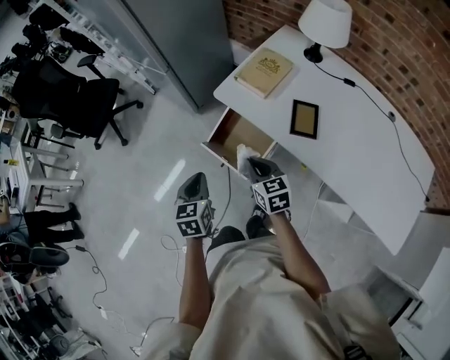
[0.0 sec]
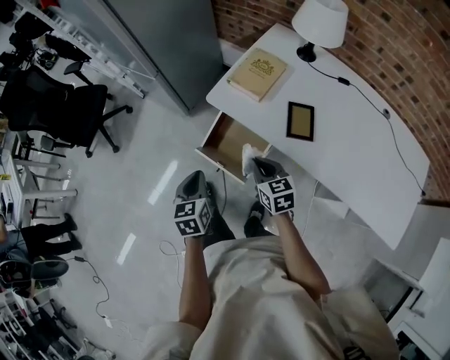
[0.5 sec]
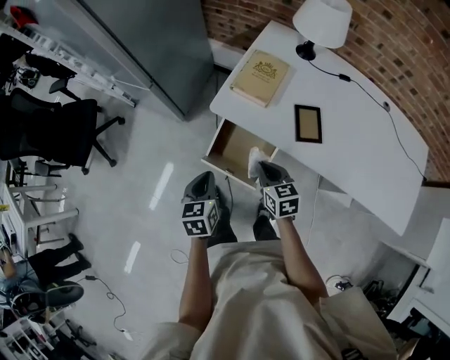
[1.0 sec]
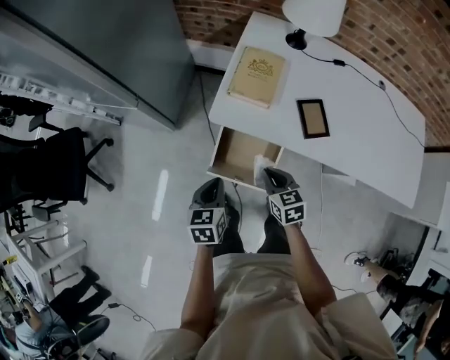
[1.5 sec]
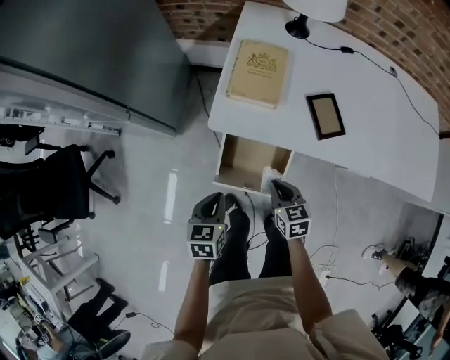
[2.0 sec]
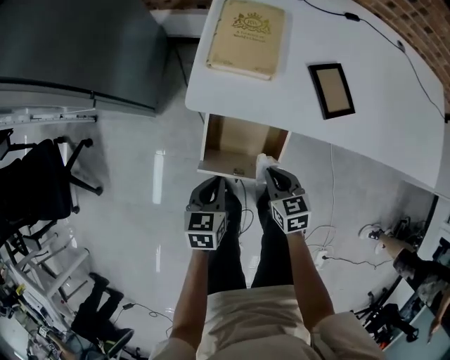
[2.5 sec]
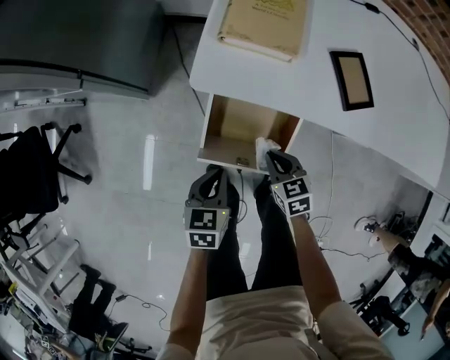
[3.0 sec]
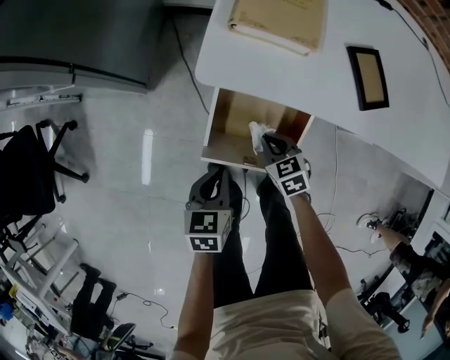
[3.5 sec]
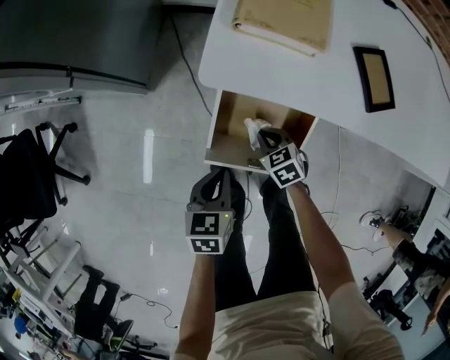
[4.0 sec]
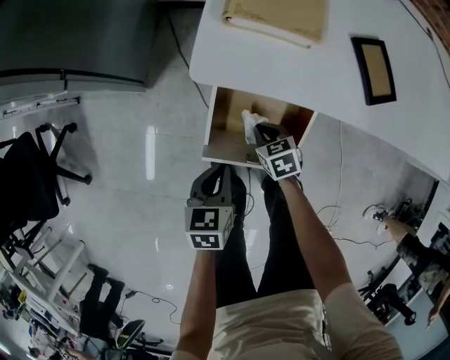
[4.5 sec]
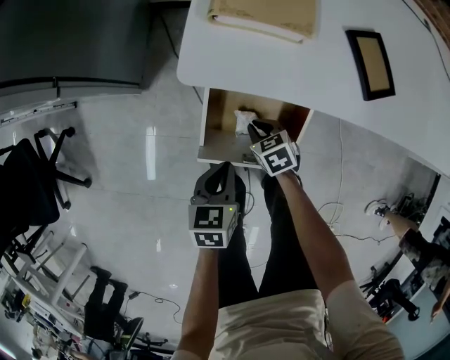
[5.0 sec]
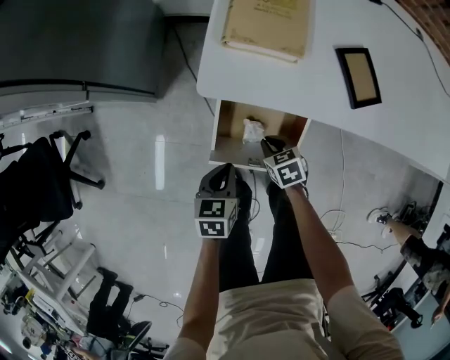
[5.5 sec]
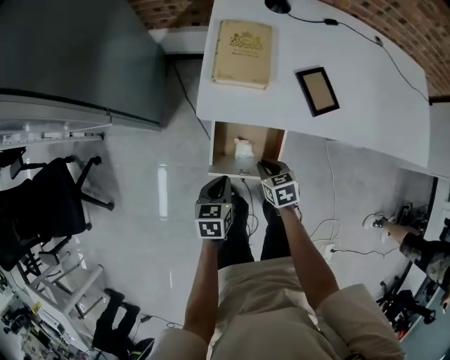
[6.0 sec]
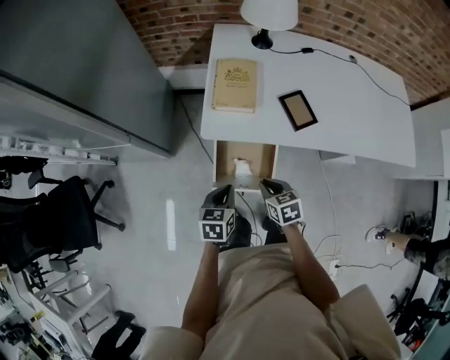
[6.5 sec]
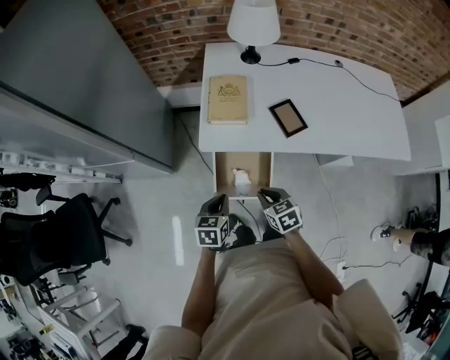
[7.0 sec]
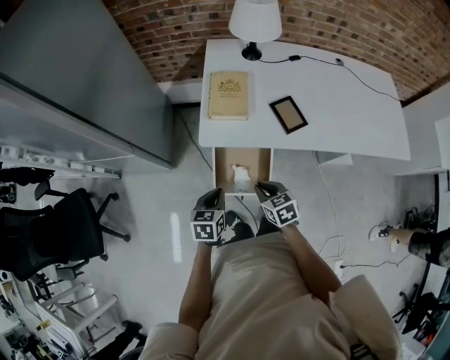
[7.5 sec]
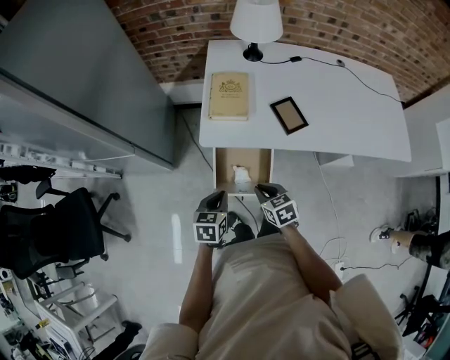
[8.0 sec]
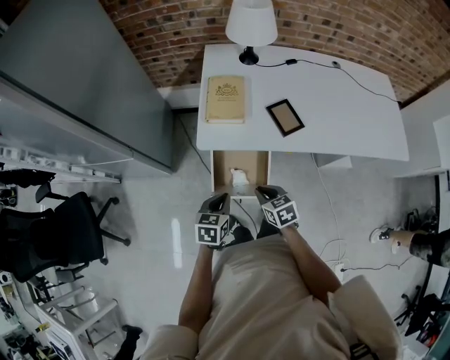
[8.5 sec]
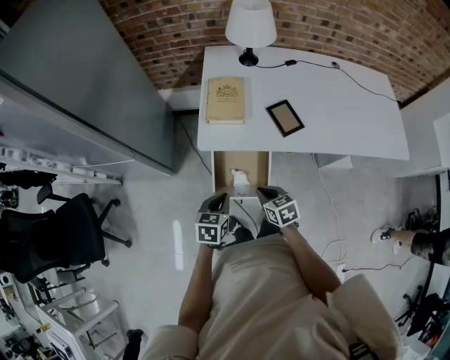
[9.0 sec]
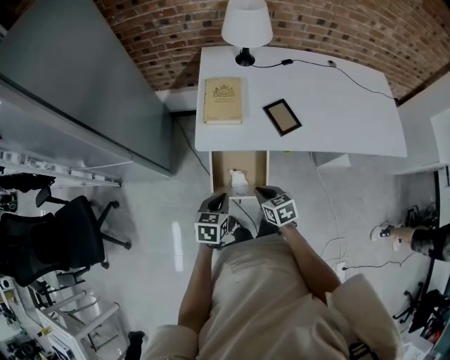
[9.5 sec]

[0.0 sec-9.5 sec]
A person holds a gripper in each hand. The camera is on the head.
0.0 sec to 2.0 sec: The left gripper moves approximately 20 cm, and changes its angle by some 40 degrees. Meanwhile the right gripper is displaced downward by roughly 15 cm, and changes its angle by some 30 degrees.
2.0 sec to 4.0 sec: The left gripper is displaced downward by some 15 cm. Meanwhile the right gripper is displaced downward by about 20 cm, and changes its angle by about 30 degrees.
4.0 sec to 5.5 sec: There are only small adjustments of the grippers.
5.5 sec to 7.5 sec: Both grippers travel together upward, about 25 cm.
7.5 sec to 9.5 sec: The grippers stay close to where they were, moving slightly.

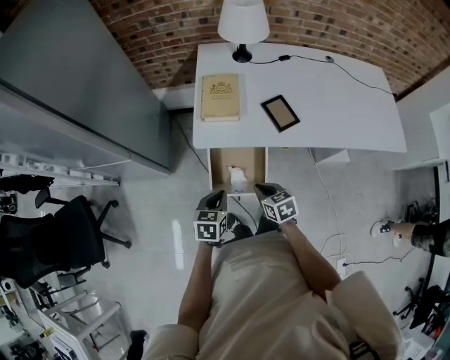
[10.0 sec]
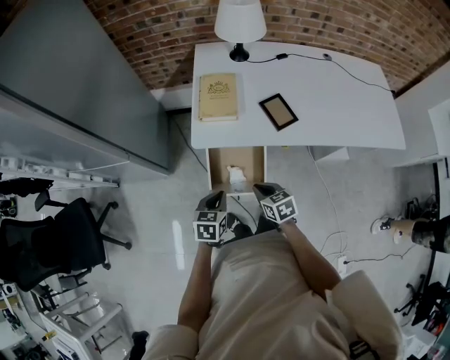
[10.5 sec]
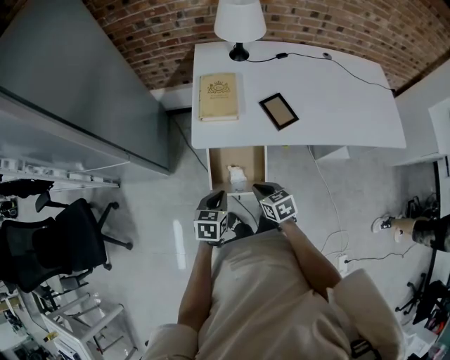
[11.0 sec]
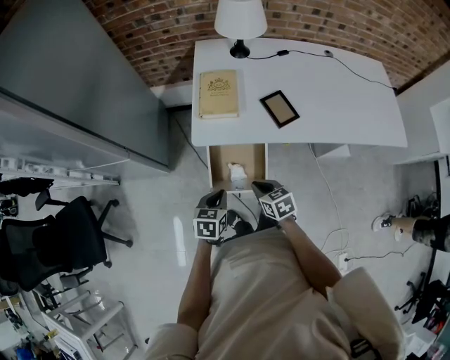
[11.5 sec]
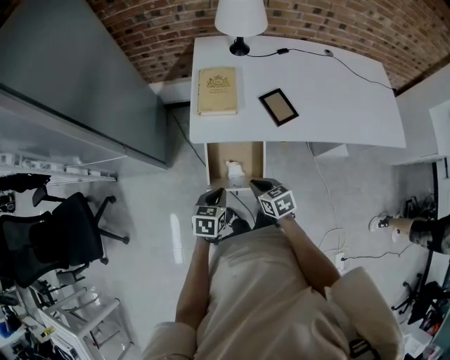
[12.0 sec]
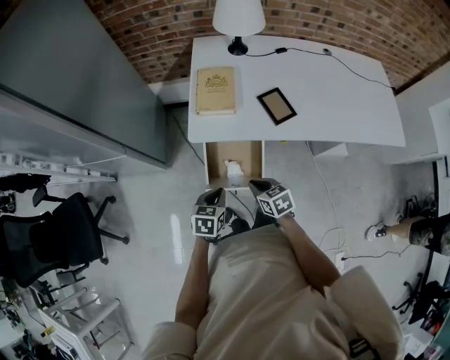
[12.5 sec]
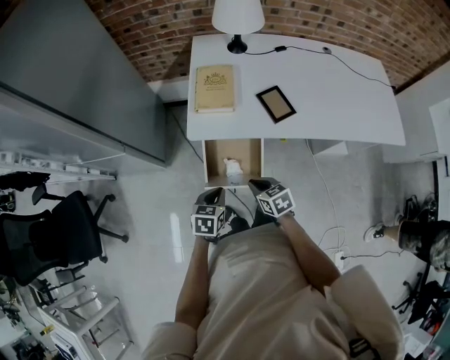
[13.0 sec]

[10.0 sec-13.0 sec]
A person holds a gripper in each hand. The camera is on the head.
10.0 sec to 11.5 sec: Neither gripper changes place.
11.5 sec to 13.0 sec: The grippers move only a little.

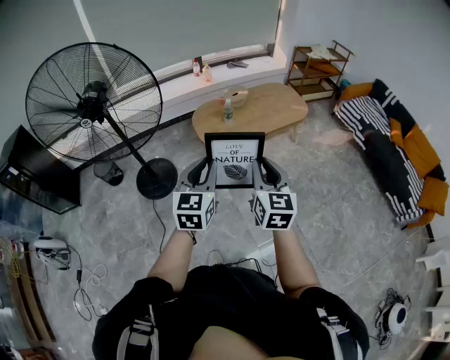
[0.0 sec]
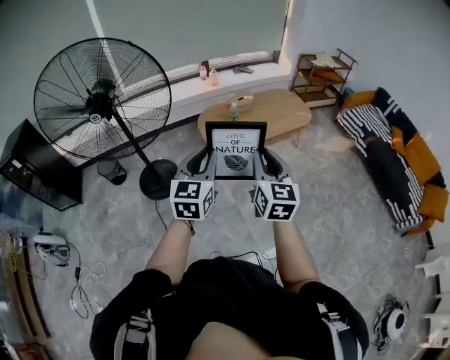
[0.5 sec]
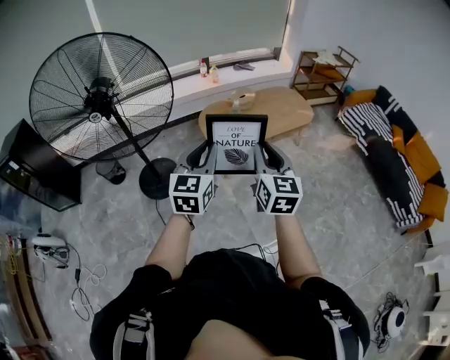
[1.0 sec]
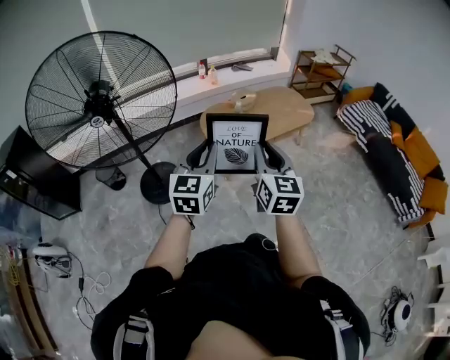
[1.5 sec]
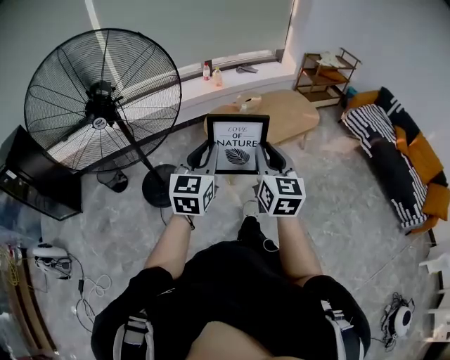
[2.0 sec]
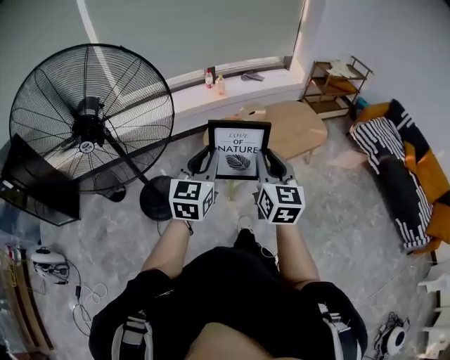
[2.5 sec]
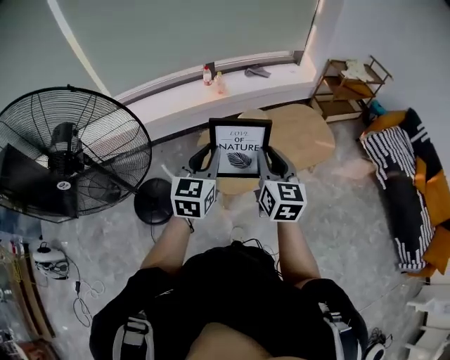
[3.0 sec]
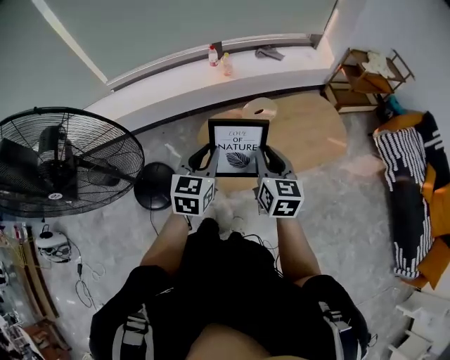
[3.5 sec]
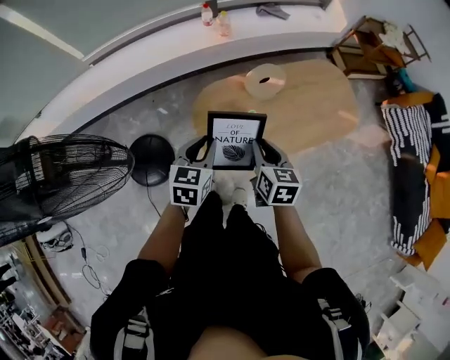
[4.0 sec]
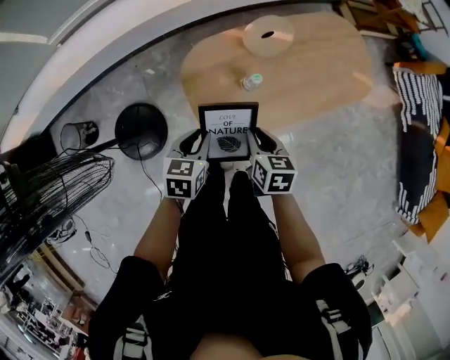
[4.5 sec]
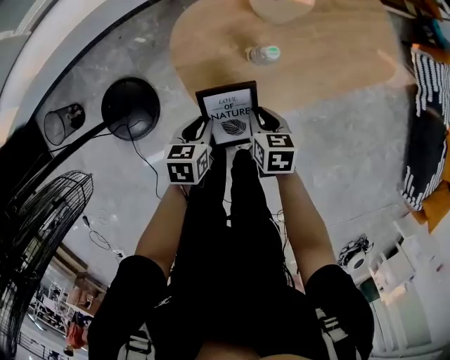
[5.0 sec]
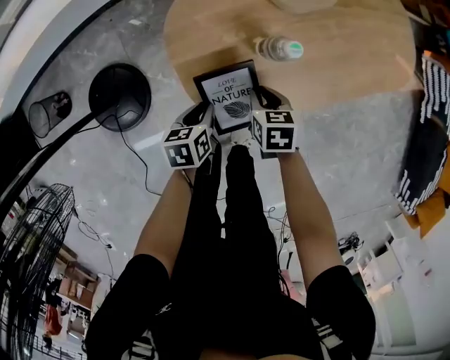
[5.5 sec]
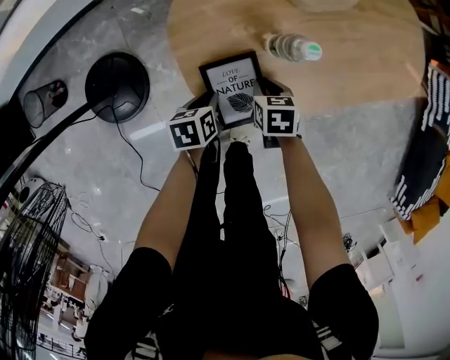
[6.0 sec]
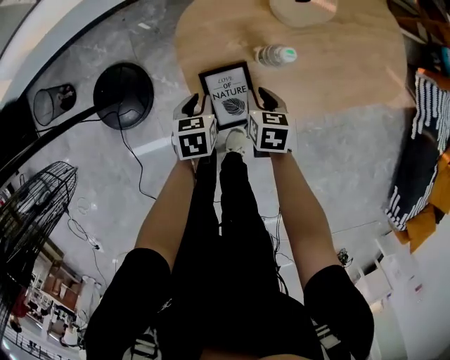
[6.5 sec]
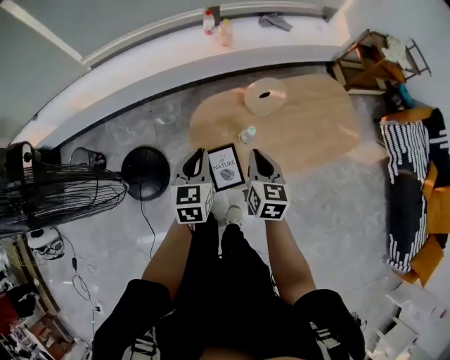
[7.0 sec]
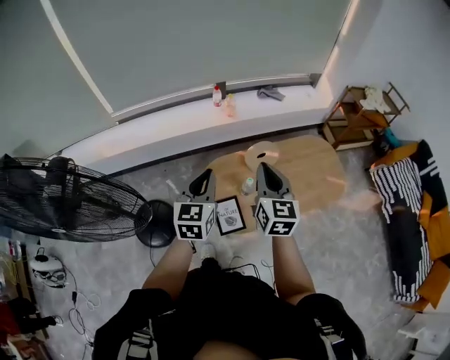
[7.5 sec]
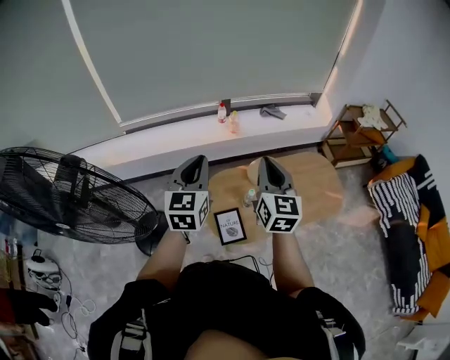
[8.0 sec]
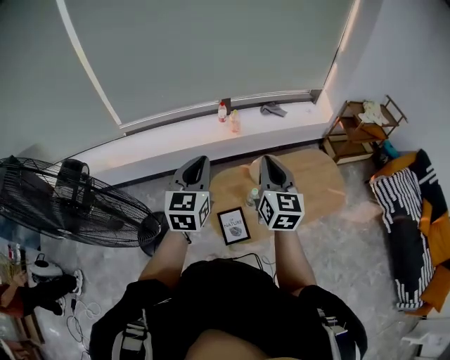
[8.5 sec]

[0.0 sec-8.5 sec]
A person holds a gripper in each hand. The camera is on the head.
0.0 sec to 2.0 sec: The grippers both shift to the left and forward by roughly 15 cm.
2.0 sec to 4.0 sec: The two grippers travel together, forward, roughly 70 cm. The right gripper goes approximately 25 cm downward, and swivels about 40 degrees; the left gripper points its fingers about 30 degrees further downward.
4.0 sec to 6.5 sec: Both grippers travel together downward, roughly 40 cm. The left gripper turns by roughly 30 degrees. Meanwhile the right gripper turns by about 20 degrees.
6.5 sec to 8.5 sec: The grippers both shift upward by approximately 70 cm. The right gripper tilts its fingers about 50 degrees upward, and closes up, while the left gripper angles its fingers upward, by approximately 50 degrees.

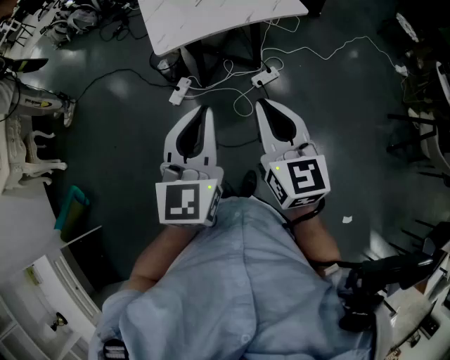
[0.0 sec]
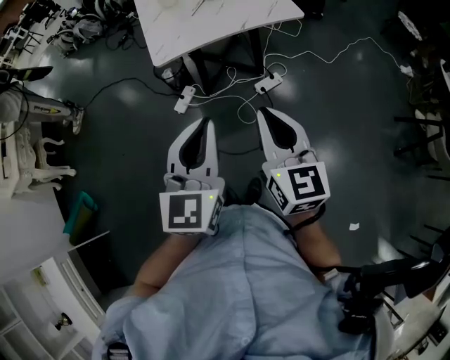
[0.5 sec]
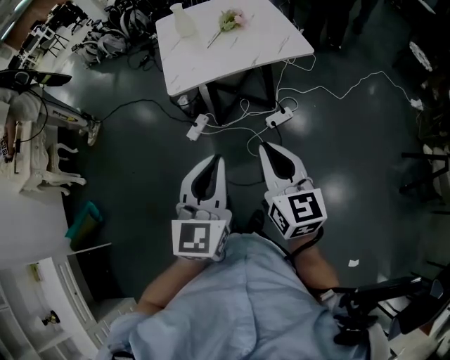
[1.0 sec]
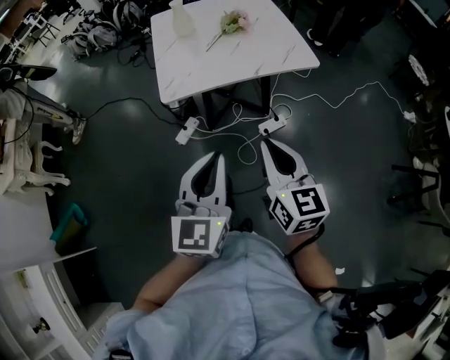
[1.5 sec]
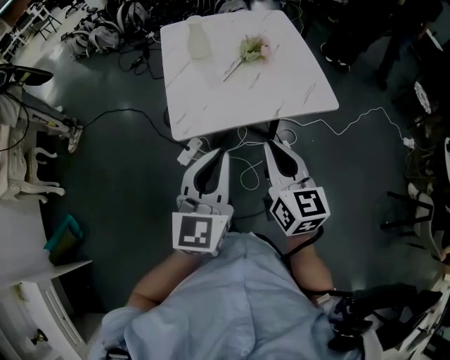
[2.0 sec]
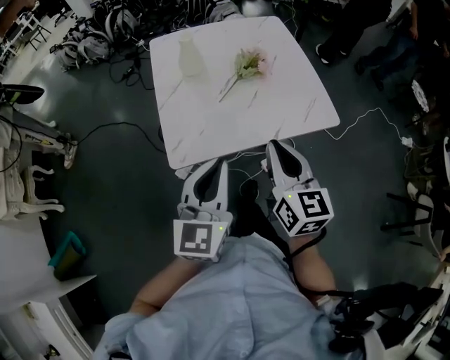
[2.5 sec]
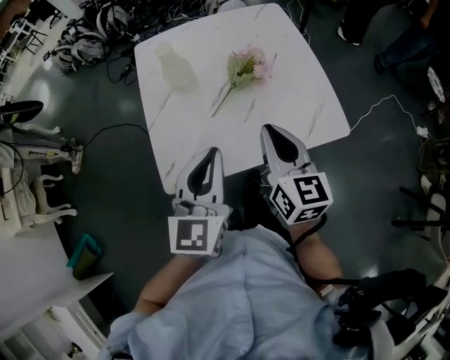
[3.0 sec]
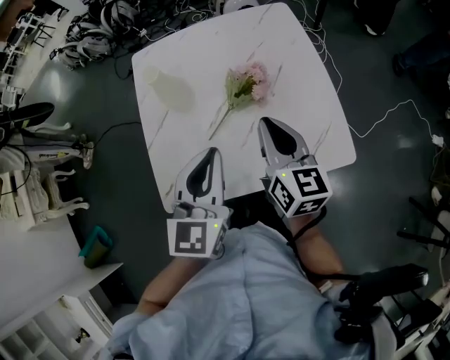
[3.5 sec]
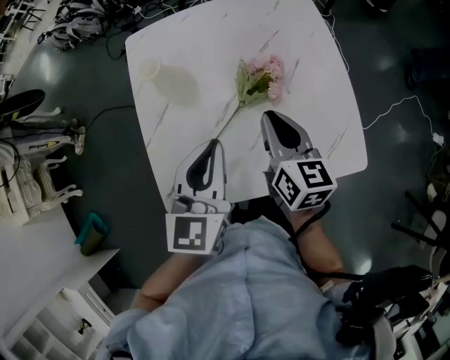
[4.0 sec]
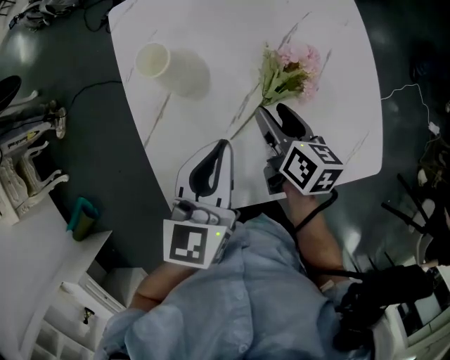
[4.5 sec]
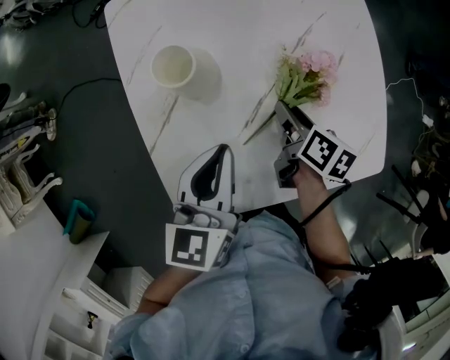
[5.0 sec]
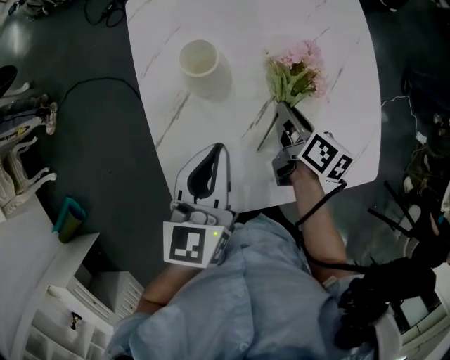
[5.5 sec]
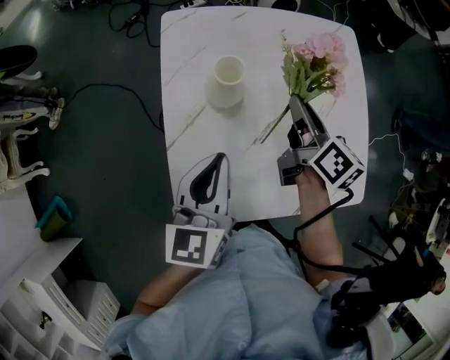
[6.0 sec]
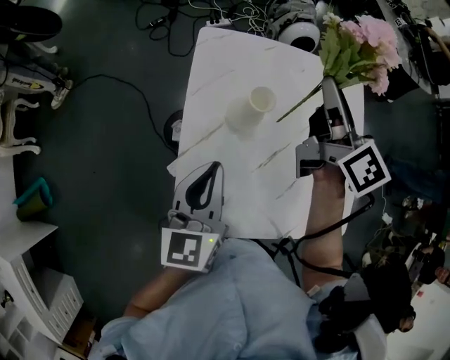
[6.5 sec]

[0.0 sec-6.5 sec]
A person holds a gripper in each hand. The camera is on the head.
0.0 sec to 2.0 sec: Both grippers move forward, some 25 cm.
2.0 sec to 4.5 sec: The left gripper moves forward, roughly 40 cm, and turns by approximately 20 degrees, while the right gripper heads forward and downward, covering roughly 50 cm, turns by roughly 40 degrees, and opens up.
4.5 sec to 6.5 sec: The left gripper travels to the left by approximately 15 cm, and rotates some 20 degrees. The right gripper heads upward and forward, covering roughly 30 cm, tips its fingers upward by some 30 degrees, and closes.
